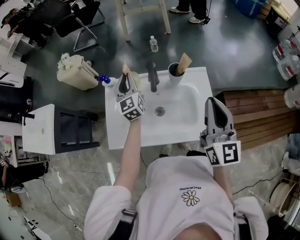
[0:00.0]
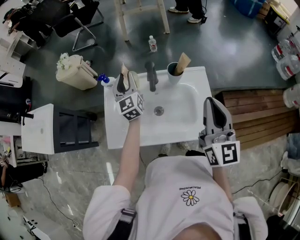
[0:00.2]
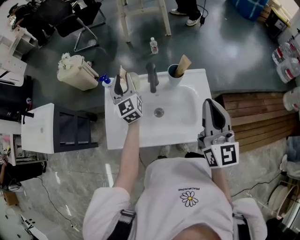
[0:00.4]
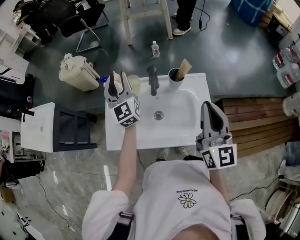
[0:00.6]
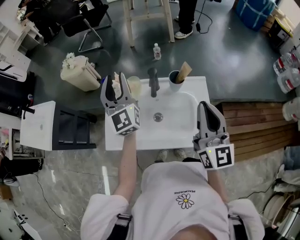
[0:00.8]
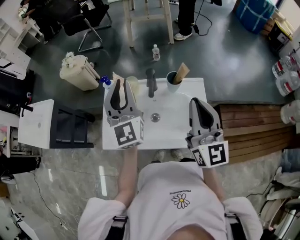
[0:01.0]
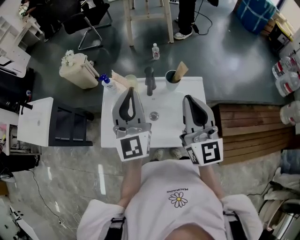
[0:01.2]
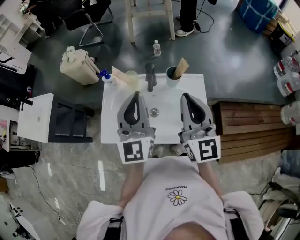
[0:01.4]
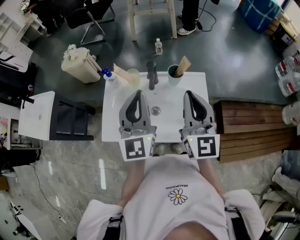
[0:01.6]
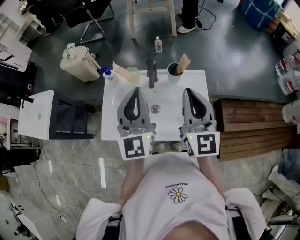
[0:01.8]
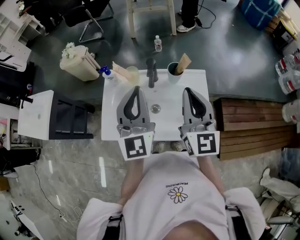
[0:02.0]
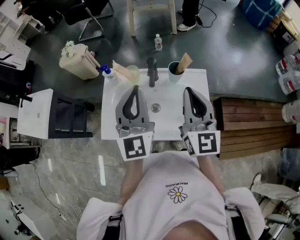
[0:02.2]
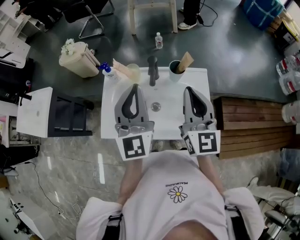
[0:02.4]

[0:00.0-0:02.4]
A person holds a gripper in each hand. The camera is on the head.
0.0 to 1.2 s: The left gripper travels upward and backward by approximately 25 cm, and opens, then closes again; the right gripper moves approximately 5 cm.
1.2 to 2.4 s: There are only small adjustments of the grippers.

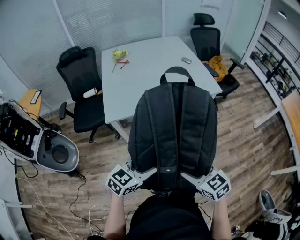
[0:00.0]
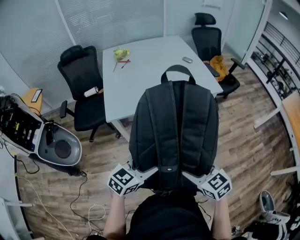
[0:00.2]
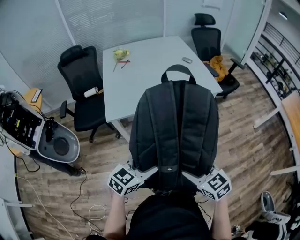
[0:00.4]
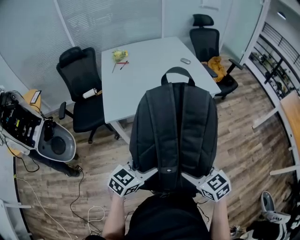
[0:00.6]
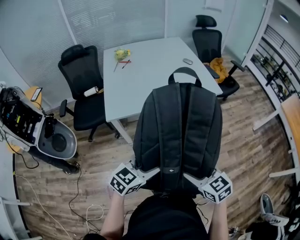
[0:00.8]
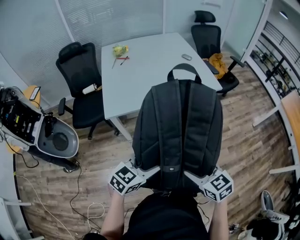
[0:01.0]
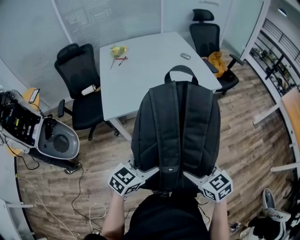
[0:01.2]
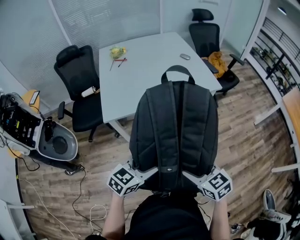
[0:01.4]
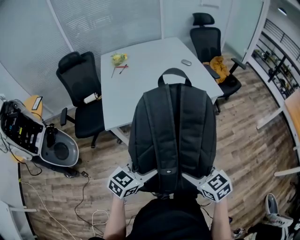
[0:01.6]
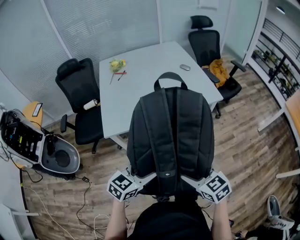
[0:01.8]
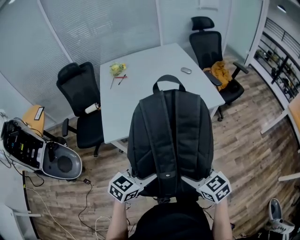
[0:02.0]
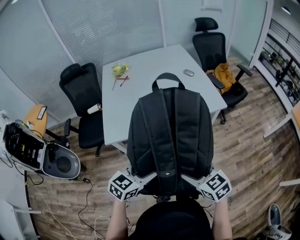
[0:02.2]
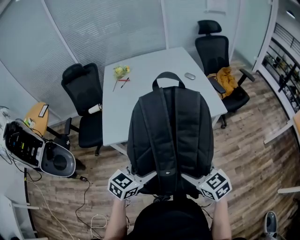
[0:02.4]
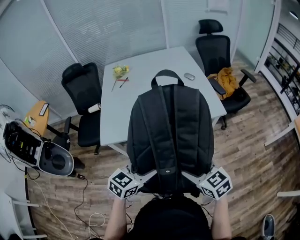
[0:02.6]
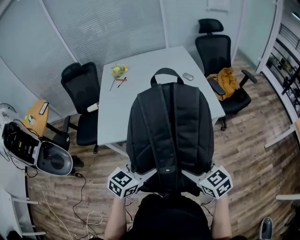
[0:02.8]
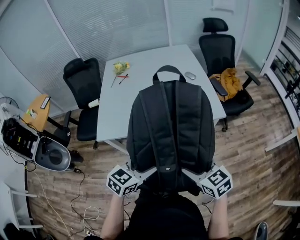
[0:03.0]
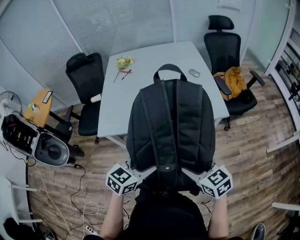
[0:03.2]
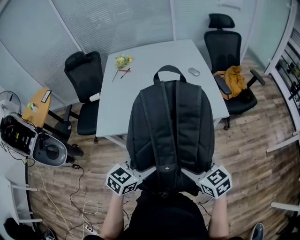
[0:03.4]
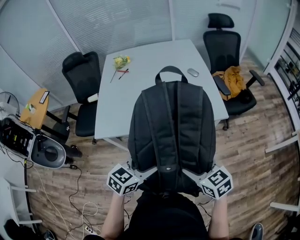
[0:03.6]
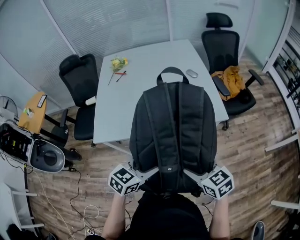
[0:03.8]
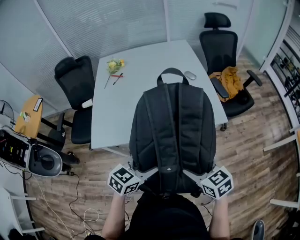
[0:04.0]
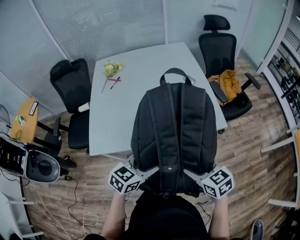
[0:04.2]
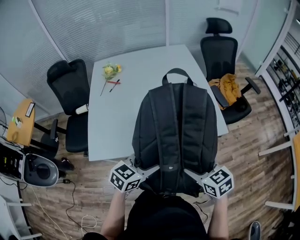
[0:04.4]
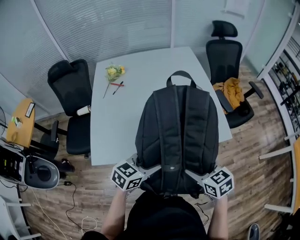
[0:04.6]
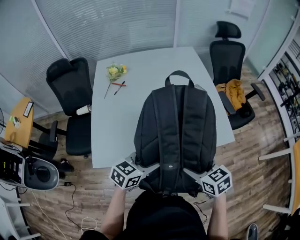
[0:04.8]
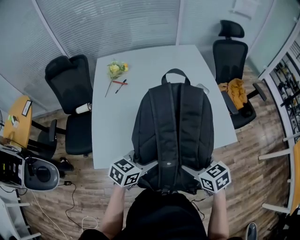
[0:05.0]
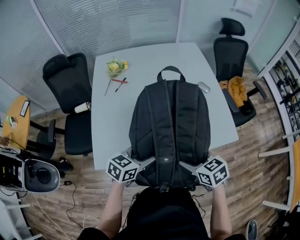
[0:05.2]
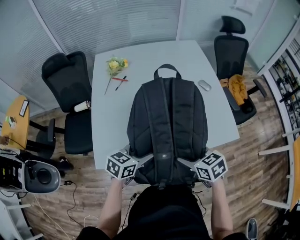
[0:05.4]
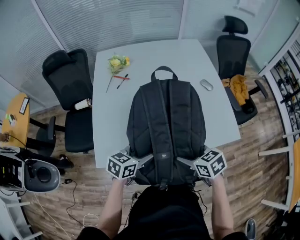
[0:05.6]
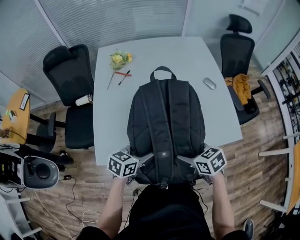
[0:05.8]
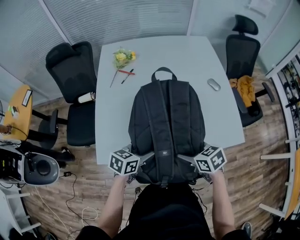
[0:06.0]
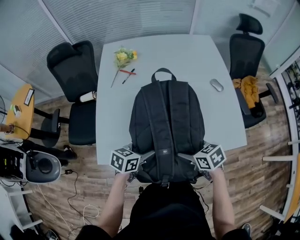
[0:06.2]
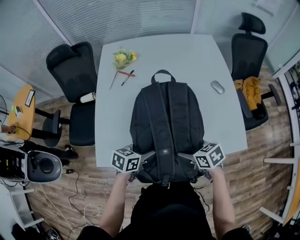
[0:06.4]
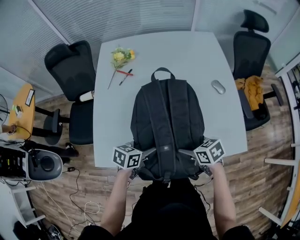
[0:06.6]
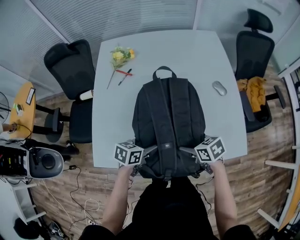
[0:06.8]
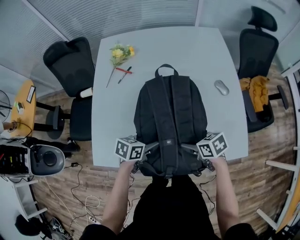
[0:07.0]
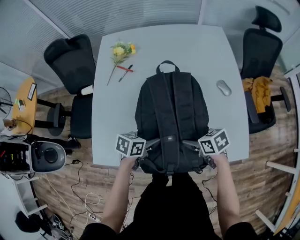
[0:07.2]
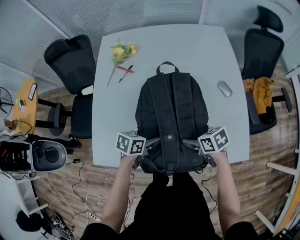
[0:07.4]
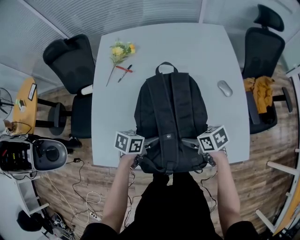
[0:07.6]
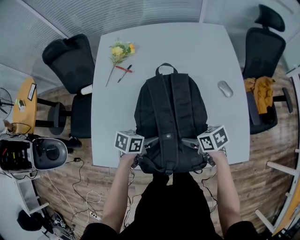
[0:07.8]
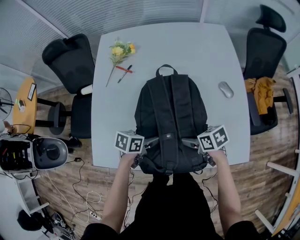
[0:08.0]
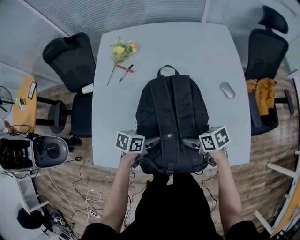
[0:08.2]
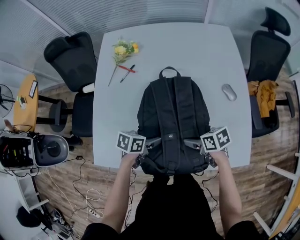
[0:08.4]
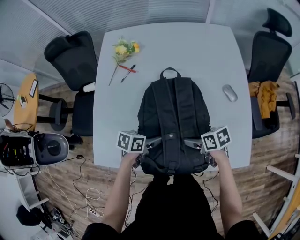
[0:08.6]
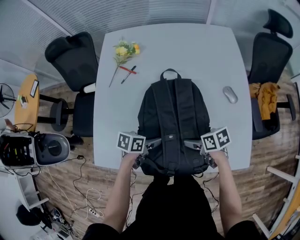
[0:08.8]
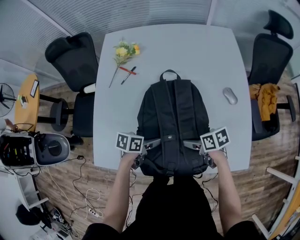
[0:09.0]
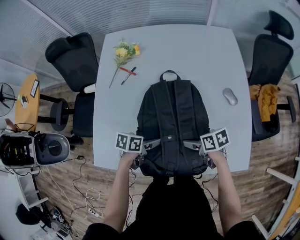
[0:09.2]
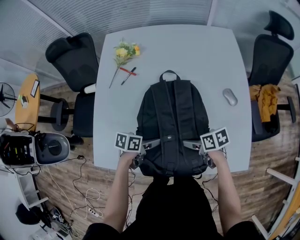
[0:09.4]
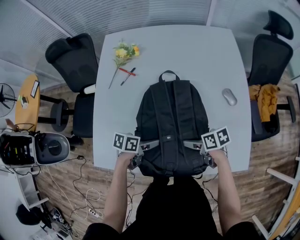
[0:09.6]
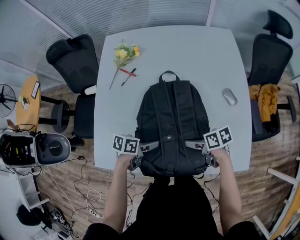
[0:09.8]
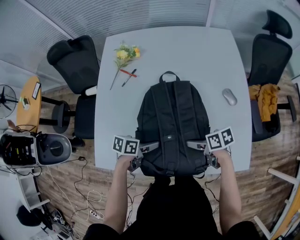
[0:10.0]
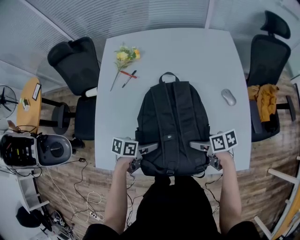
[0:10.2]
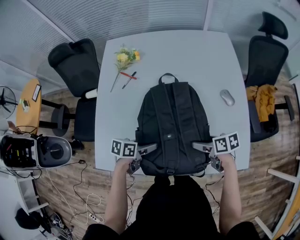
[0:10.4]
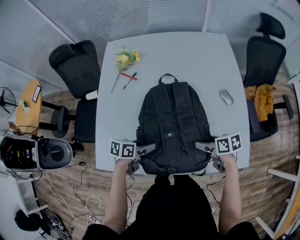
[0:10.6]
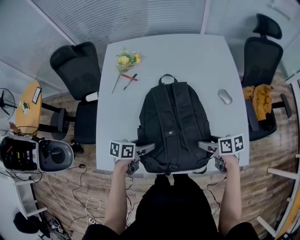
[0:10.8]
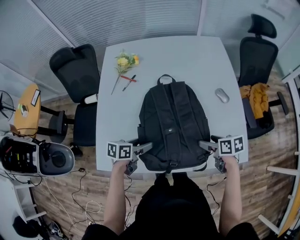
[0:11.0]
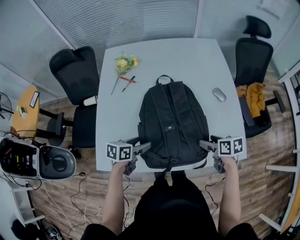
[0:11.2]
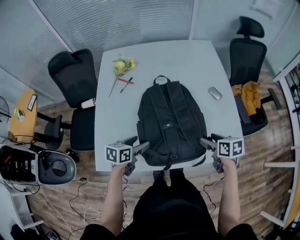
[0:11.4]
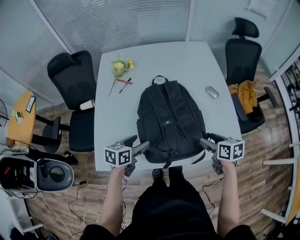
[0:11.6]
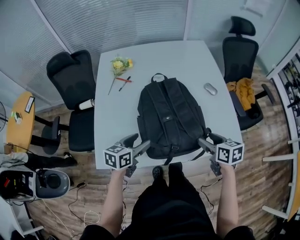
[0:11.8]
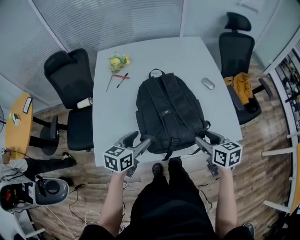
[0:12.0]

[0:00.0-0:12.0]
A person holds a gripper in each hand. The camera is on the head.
0.0 to 1.6 s: The grippers make only small movements.
1.6 to 3.0 s: Both grippers travel together forward and to the right, roughly 20 cm.
3.0 to 4.4 s: The grippers both shift forward by some 15 cm.
4.4 to 6.0 s: The two grippers go some 20 cm to the left, forward and downward. The left gripper swivels about 20 degrees.
6.0 to 7.6 s: The right gripper moves about 20 cm. The left gripper shifts by some 15 cm.
7.6 to 9.0 s: The grippers make only small movements.
9.0 to 10.4 s: The right gripper moves some 5 cm.
10.4 to 12.0 s: The right gripper ends up approximately 15 cm from where it was, turns by some 40 degrees, and closes. Meanwhile the left gripper travels upward by some 10 cm, and turns by some 30 degrees.

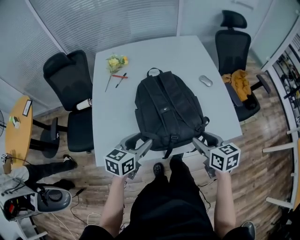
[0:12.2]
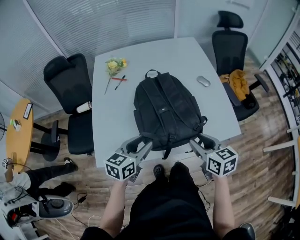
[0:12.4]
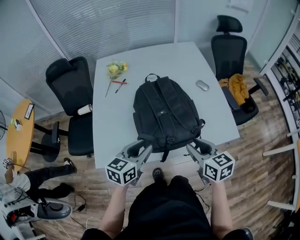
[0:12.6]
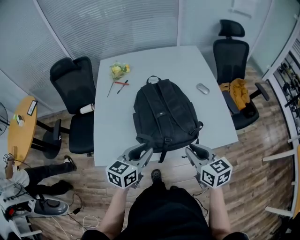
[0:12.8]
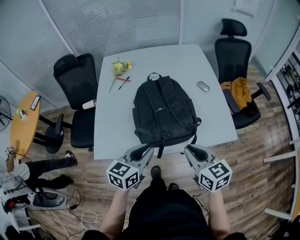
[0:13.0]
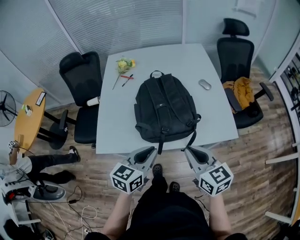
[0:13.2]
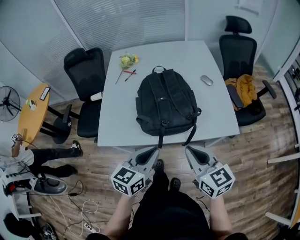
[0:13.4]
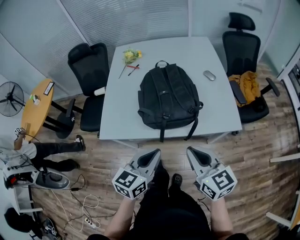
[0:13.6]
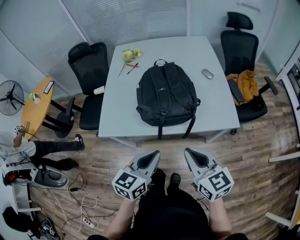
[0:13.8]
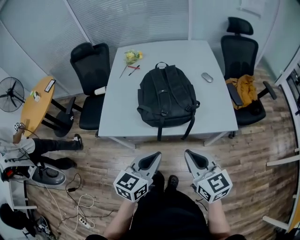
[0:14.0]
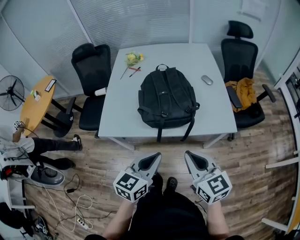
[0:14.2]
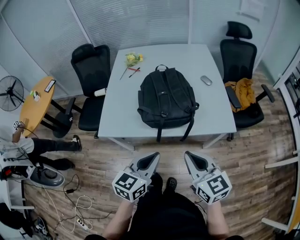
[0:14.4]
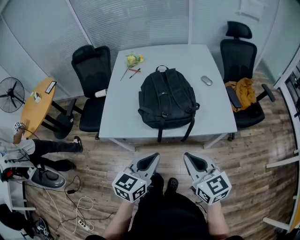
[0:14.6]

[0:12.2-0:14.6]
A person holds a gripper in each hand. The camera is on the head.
12.2 to 13.4 s: The right gripper heads backward and upward, covering about 15 cm, swivels about 20 degrees, and closes. Meanwhile the left gripper shifts about 20 cm backward, to the right and upward, and closes.
13.4 to 14.6 s: The grippers both shift backward by some 10 cm.

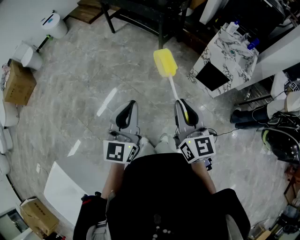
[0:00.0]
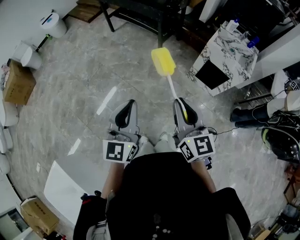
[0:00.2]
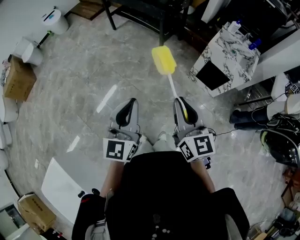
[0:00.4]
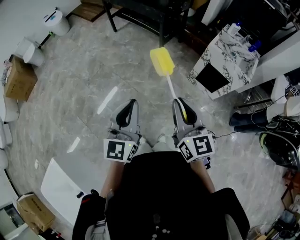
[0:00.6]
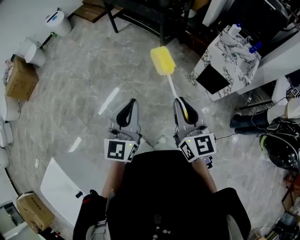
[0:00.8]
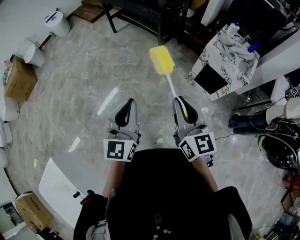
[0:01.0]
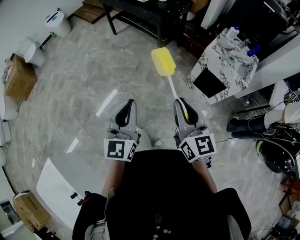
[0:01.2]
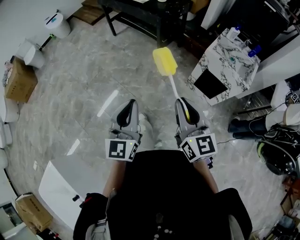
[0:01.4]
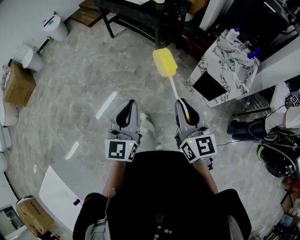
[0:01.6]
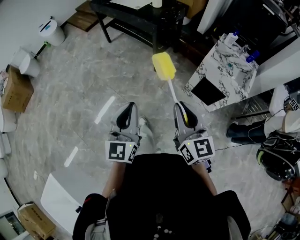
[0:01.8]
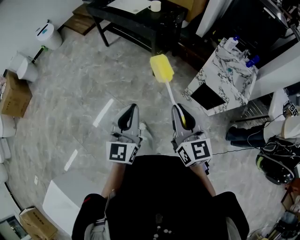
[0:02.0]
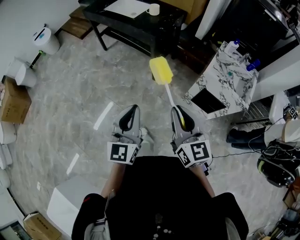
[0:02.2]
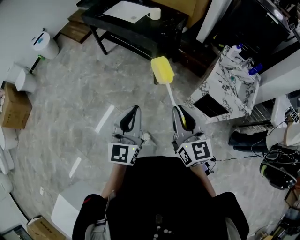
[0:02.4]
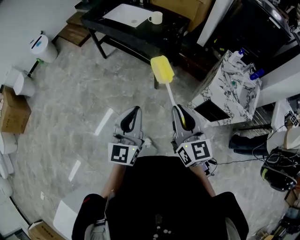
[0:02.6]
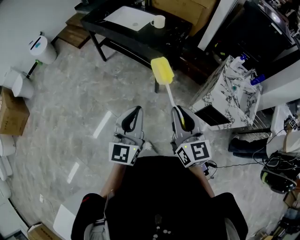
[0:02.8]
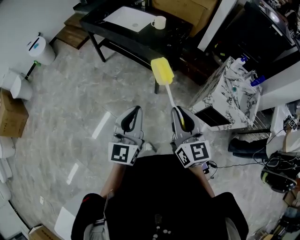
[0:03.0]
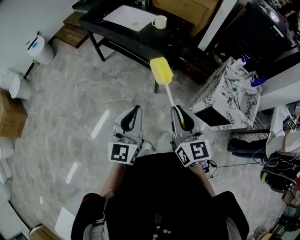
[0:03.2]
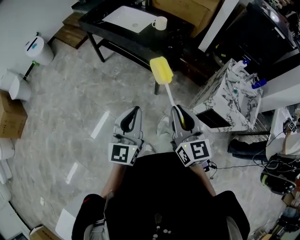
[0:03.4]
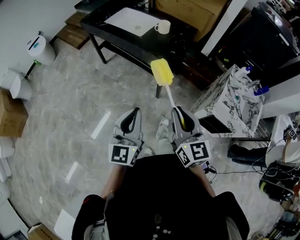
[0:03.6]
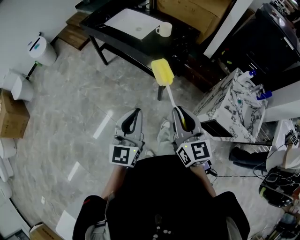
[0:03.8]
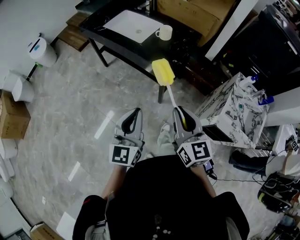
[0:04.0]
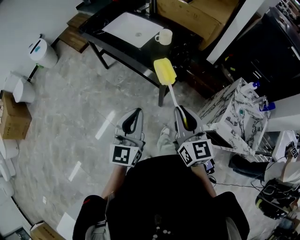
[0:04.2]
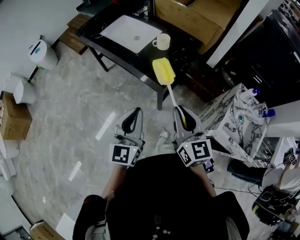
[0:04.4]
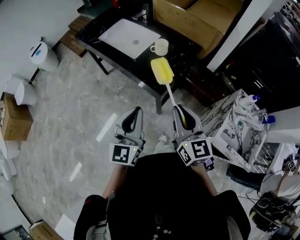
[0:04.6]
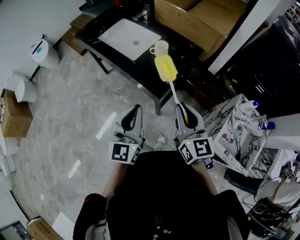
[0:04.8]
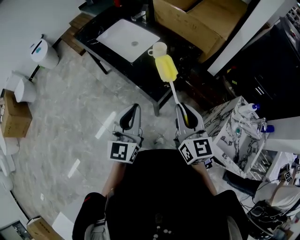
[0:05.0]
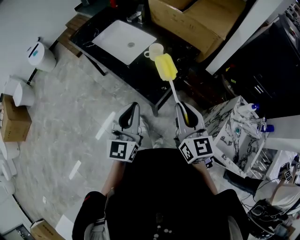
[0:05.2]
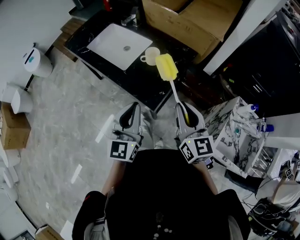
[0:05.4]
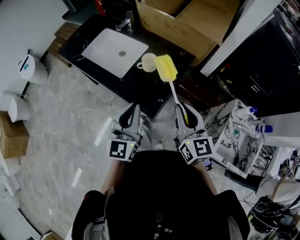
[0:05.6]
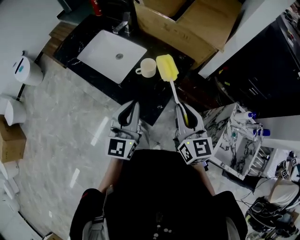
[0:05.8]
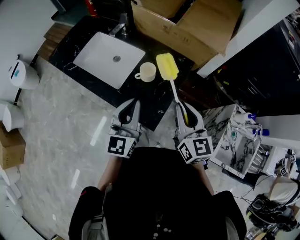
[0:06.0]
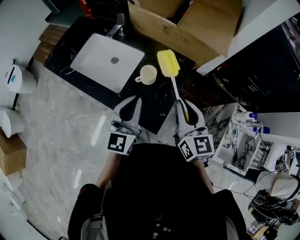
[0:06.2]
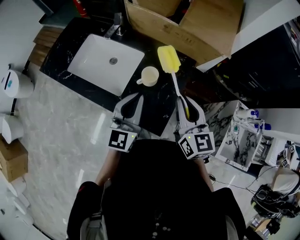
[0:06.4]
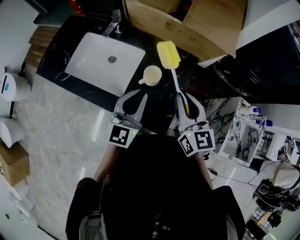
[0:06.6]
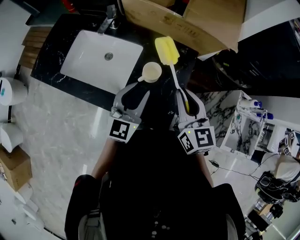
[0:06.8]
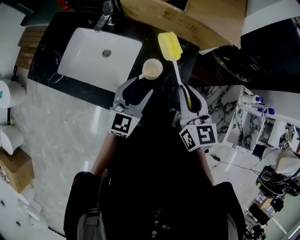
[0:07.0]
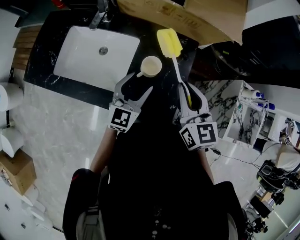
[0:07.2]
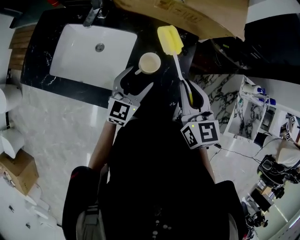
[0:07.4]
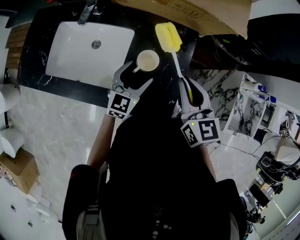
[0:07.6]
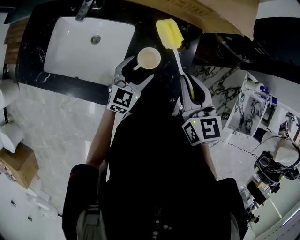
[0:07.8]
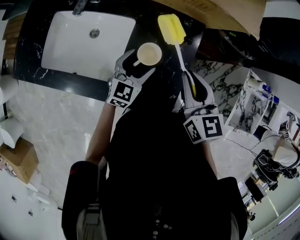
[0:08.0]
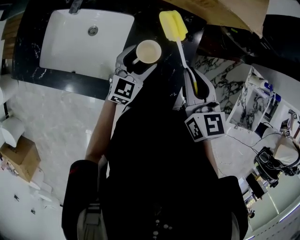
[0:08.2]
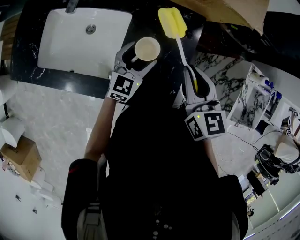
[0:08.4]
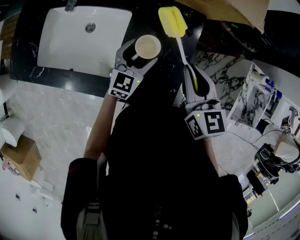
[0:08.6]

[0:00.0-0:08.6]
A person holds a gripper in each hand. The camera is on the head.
0.0 to 1.4 s: Both grippers travel together to the right and forward, approximately 10 cm.
1.4 to 2.8 s: Both grippers move forward, roughly 30 cm.
2.8 to 4.4 s: The grippers both shift forward by roughly 25 cm.
4.4 to 5.8 s: Both grippers travel together forward, about 25 cm.
5.8 to 7.2 s: The right gripper is displaced forward and to the left by approximately 15 cm; the left gripper travels forward and downward by about 20 cm, changes its angle by roughly 30 degrees, and opens up.
7.2 to 8.6 s: The left gripper travels downward and forward by roughly 10 cm, while the right gripper heads downward, covering some 5 cm.
